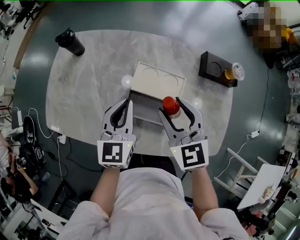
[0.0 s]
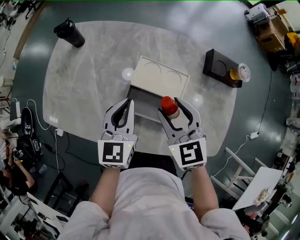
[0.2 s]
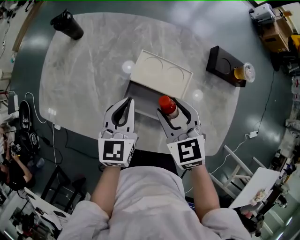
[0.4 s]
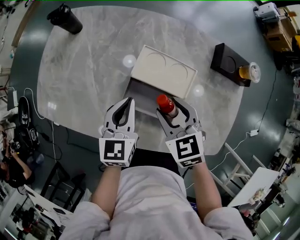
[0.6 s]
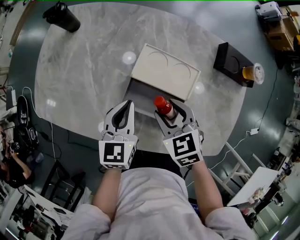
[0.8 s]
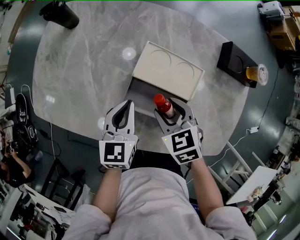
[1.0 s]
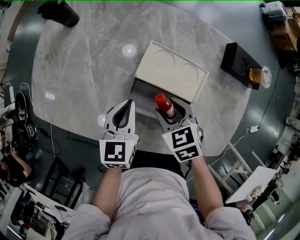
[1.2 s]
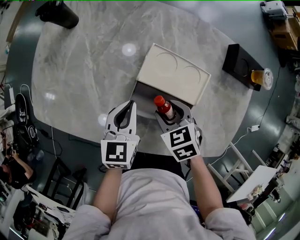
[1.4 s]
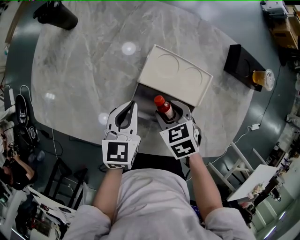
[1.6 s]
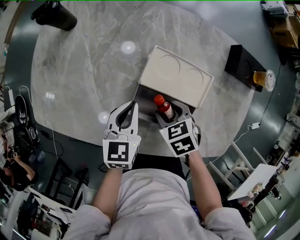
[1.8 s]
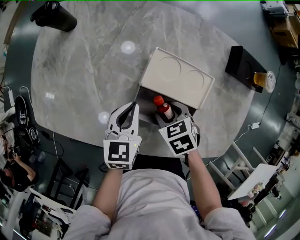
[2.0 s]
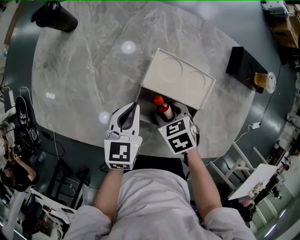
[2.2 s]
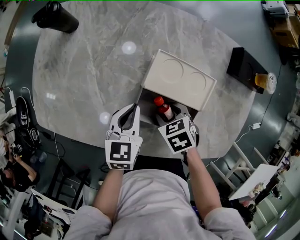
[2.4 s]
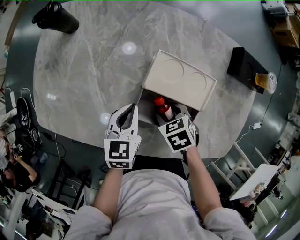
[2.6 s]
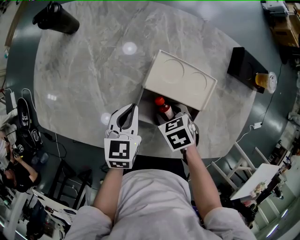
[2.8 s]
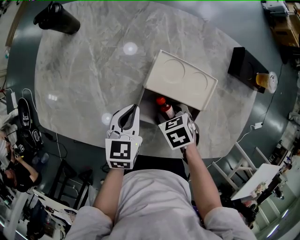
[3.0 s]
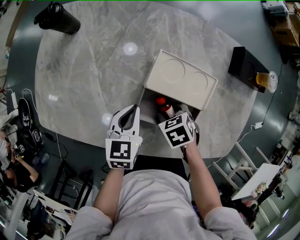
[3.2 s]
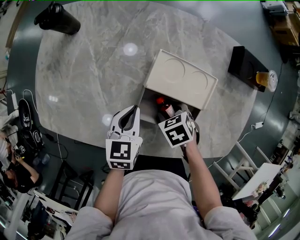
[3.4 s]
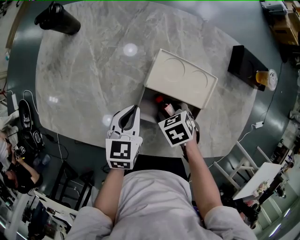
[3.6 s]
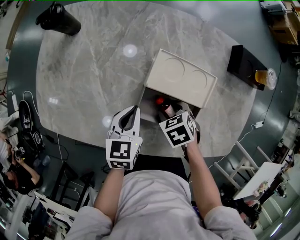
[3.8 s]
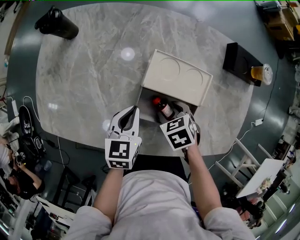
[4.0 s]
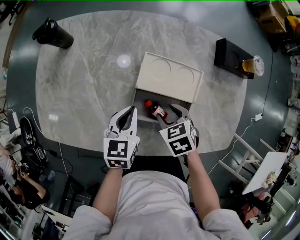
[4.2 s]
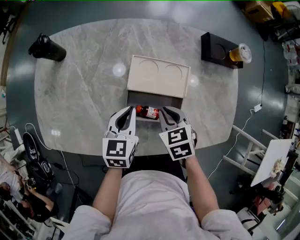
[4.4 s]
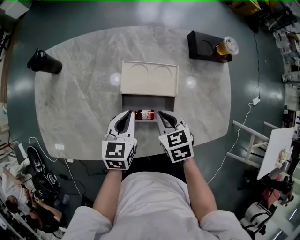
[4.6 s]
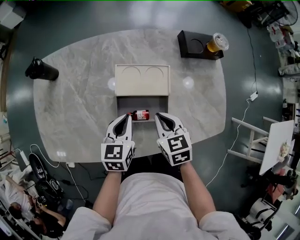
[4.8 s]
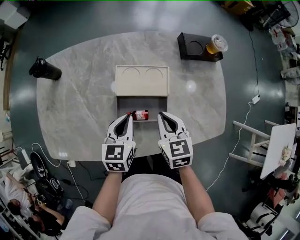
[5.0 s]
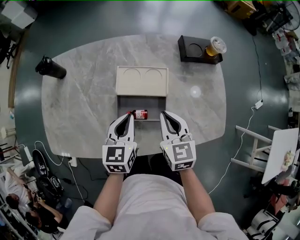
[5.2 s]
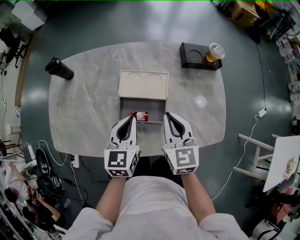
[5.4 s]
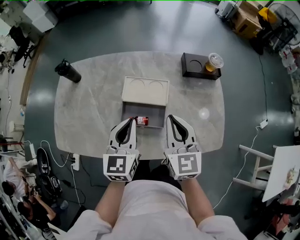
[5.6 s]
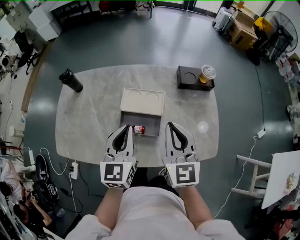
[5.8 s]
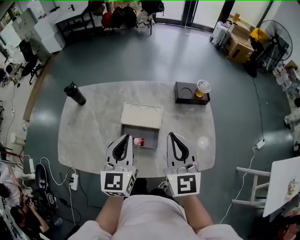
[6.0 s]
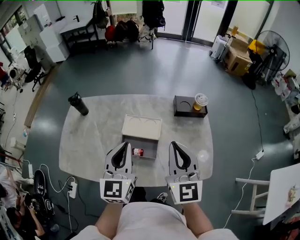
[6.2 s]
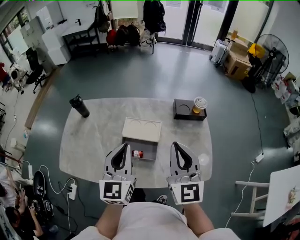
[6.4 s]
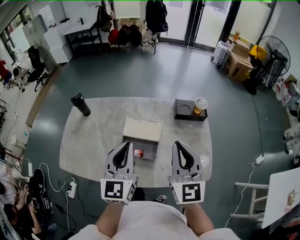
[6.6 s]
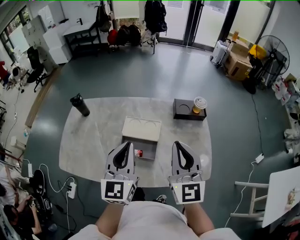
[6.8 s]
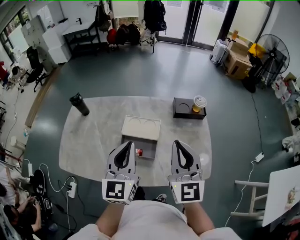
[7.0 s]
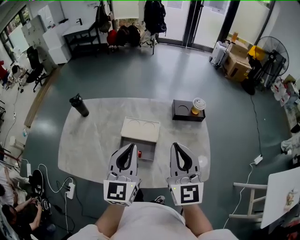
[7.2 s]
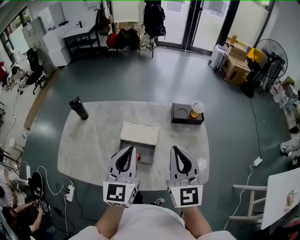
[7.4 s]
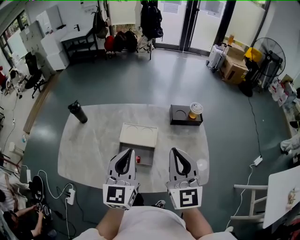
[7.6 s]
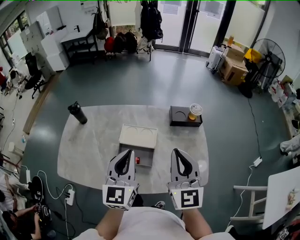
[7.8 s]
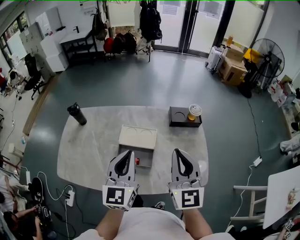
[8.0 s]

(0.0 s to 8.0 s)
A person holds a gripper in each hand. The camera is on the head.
0.0 s - 1.6 s: The two grippers go approximately 20 cm downward. The left gripper turns by approximately 20 degrees. The right gripper angles its fingers downward, by some 40 degrees.
1.6 s - 3.2 s: The right gripper changes place by some 5 cm.
3.2 s - 4.8 s: The right gripper is displaced upward by about 15 cm, swivels approximately 40 degrees, and closes. Meanwhile the left gripper changes place by about 10 cm.
4.8 s - 6.4 s: Both grippers move upward, roughly 30 cm. The left gripper tilts its fingers about 30 degrees upward; the right gripper points its fingers approximately 50 degrees further upward.
6.4 s - 8.0 s: The grippers move only a little.

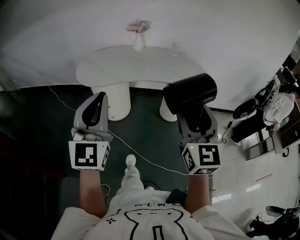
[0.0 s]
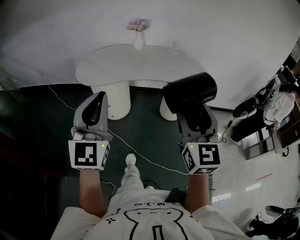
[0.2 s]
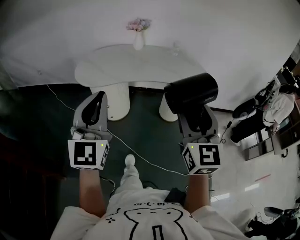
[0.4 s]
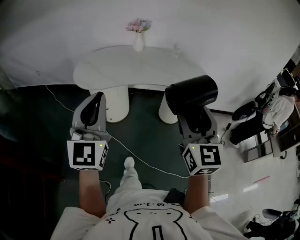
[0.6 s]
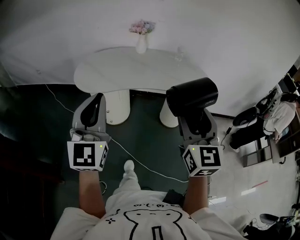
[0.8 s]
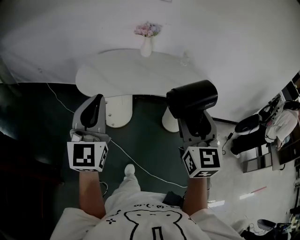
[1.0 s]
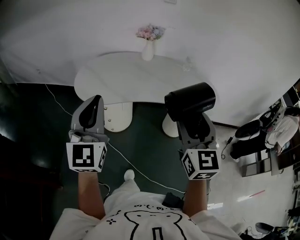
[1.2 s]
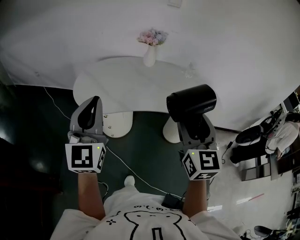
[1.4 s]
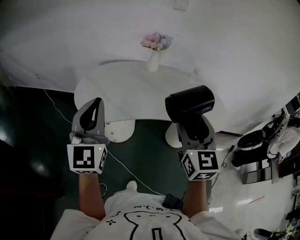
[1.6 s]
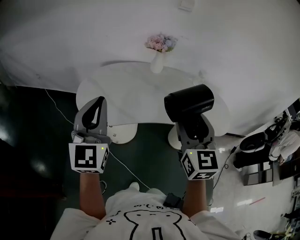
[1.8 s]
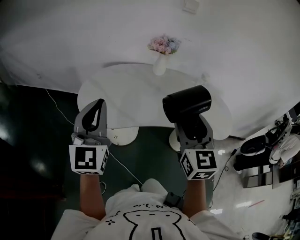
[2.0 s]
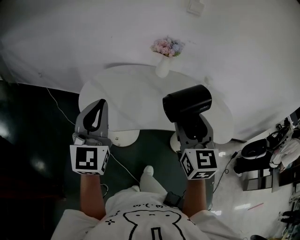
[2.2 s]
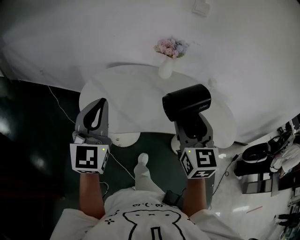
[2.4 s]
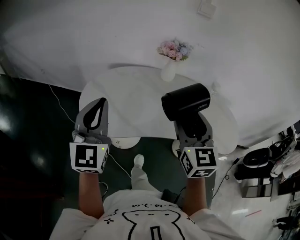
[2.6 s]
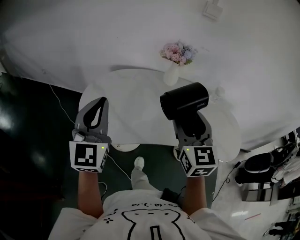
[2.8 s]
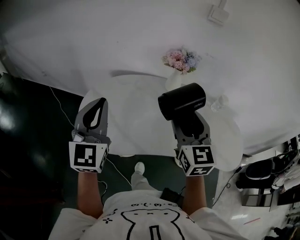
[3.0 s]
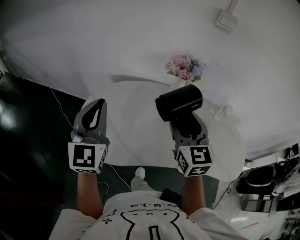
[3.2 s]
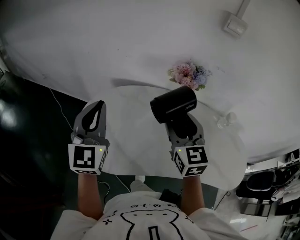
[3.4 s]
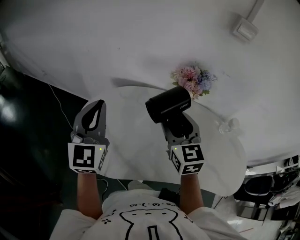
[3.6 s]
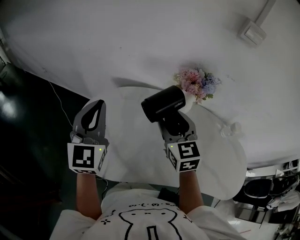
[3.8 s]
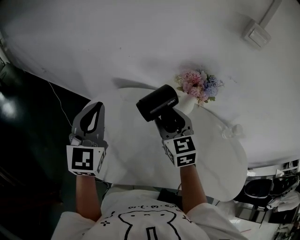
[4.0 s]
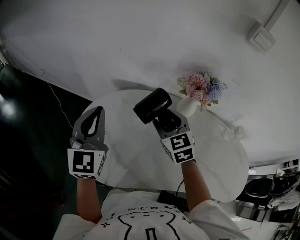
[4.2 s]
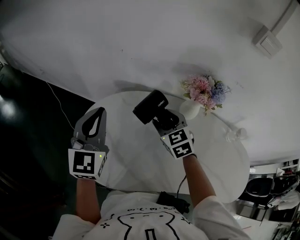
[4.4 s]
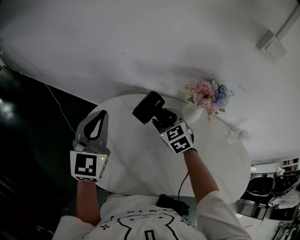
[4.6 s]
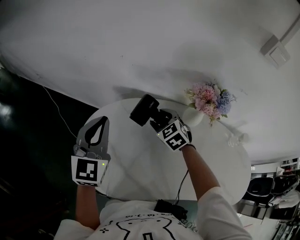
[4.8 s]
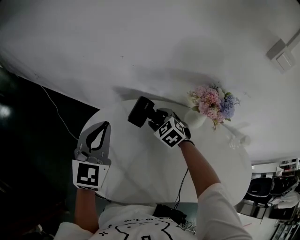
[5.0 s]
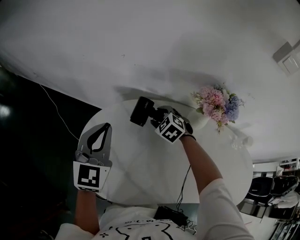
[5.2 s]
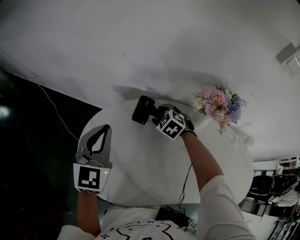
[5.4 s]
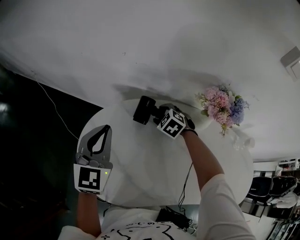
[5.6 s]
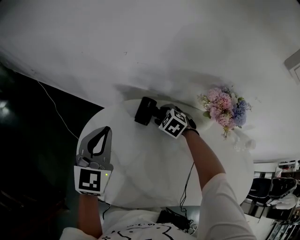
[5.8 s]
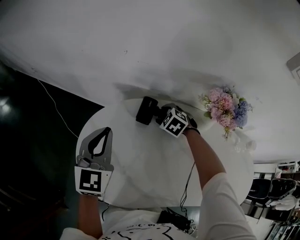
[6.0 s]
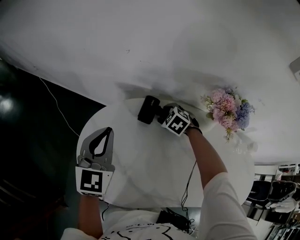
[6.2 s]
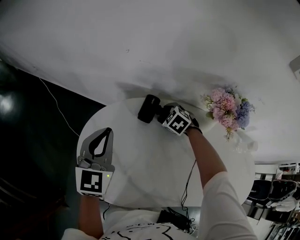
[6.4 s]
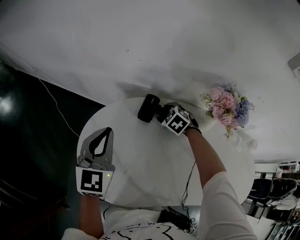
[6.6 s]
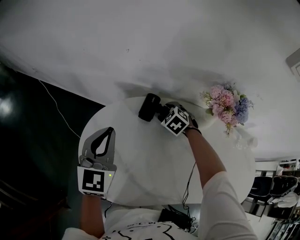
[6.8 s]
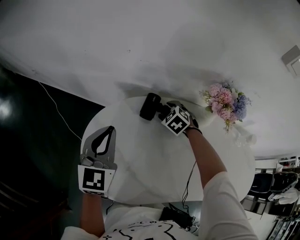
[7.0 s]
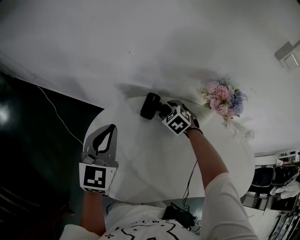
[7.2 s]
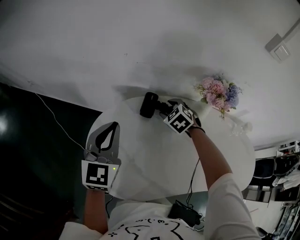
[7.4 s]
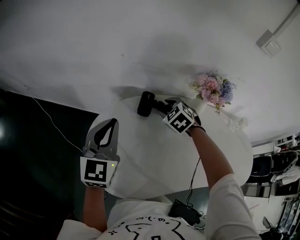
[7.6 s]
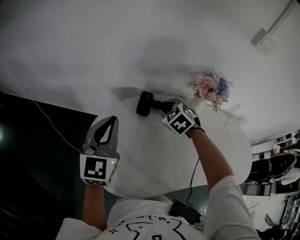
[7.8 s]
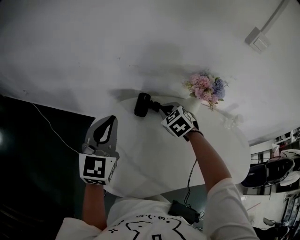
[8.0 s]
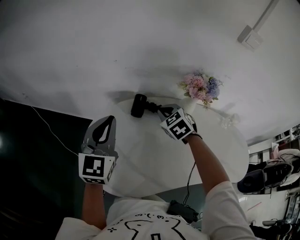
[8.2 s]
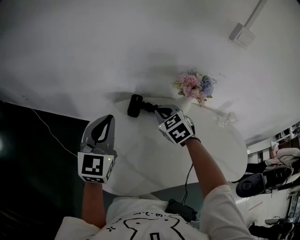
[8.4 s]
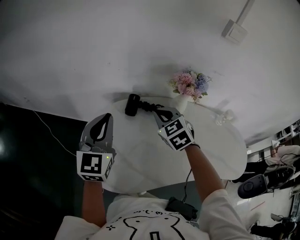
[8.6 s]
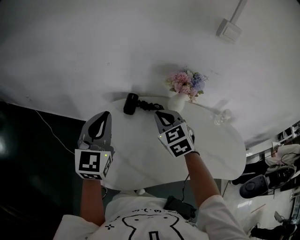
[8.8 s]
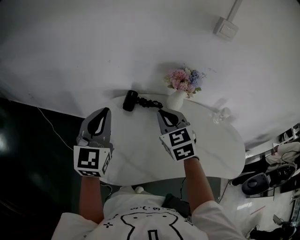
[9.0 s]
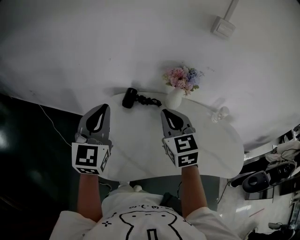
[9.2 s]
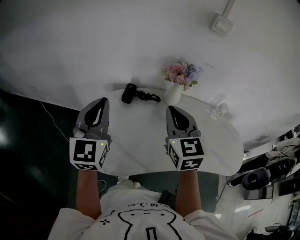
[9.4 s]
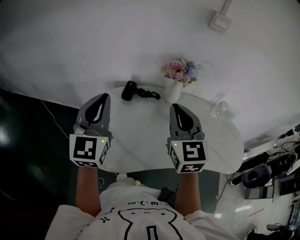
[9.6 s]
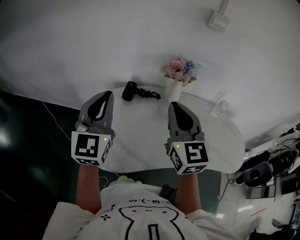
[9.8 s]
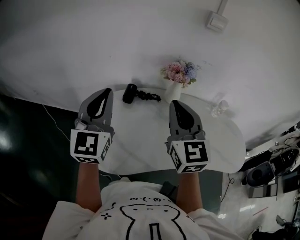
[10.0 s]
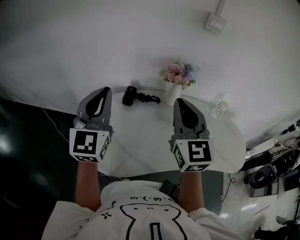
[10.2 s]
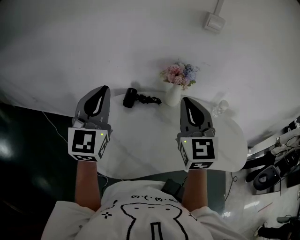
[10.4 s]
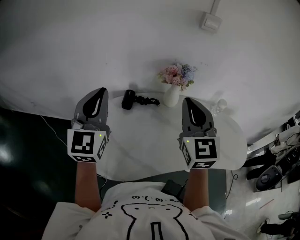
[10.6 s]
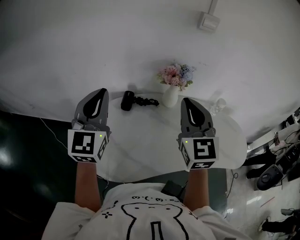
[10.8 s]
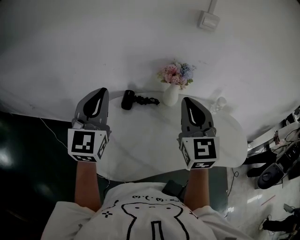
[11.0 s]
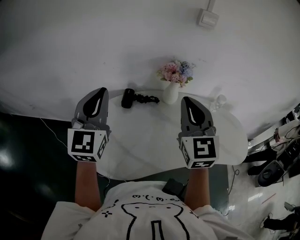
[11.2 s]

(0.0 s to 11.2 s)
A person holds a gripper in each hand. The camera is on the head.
0.0 s - 1.6 s: The left gripper heads forward and to the left, covering approximately 35 cm; the right gripper travels forward by approximately 30 cm.
1.6 s - 3.2 s: Both grippers travel together forward, some 30 cm.
3.2 s - 4.8 s: The right gripper is displaced forward and downward by about 35 cm, and tilts its fingers approximately 40 degrees downward. Meanwhile the left gripper heads forward and downward, covering approximately 20 cm.
4.8 s - 6.4 s: The right gripper goes some 15 cm downward and forward, and changes its angle by about 20 degrees, while the left gripper is displaced downward by approximately 5 cm.
6.4 s - 8.0 s: The left gripper goes some 5 cm upward. The right gripper travels upward and backward by about 15 cm, changes its angle by approximately 20 degrees, and closes up.
8.0 s - 9.6 s: The left gripper moves backward, upward and to the right, approximately 20 cm. The right gripper moves backward, upward and to the right, about 35 cm, and angles its fingers upward, by roughly 50 degrees.
9.6 s - 11.2 s: The left gripper changes place by approximately 5 cm.

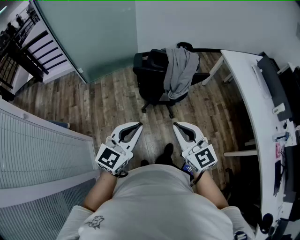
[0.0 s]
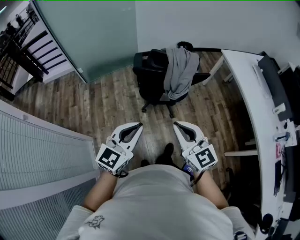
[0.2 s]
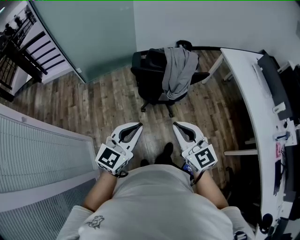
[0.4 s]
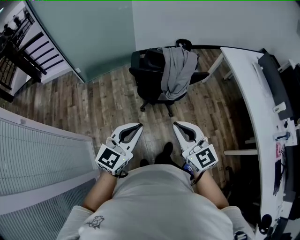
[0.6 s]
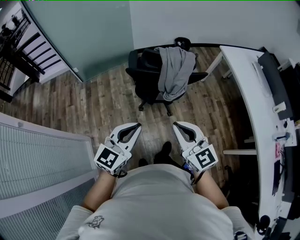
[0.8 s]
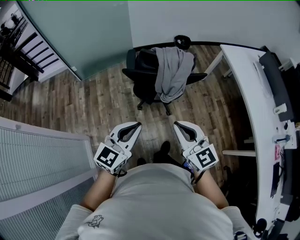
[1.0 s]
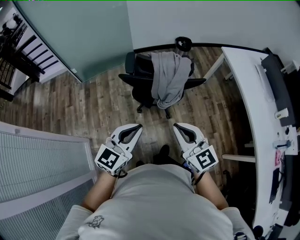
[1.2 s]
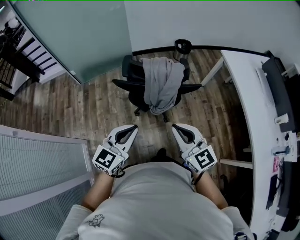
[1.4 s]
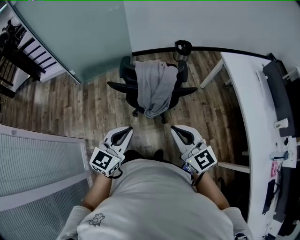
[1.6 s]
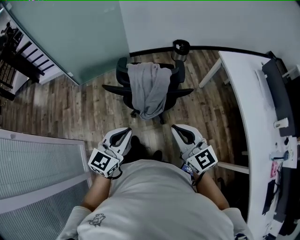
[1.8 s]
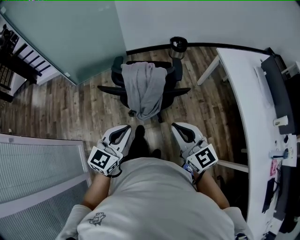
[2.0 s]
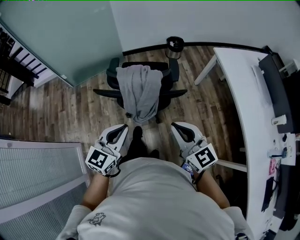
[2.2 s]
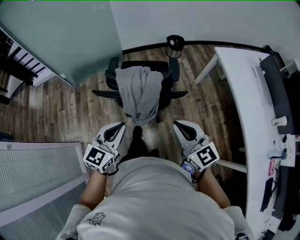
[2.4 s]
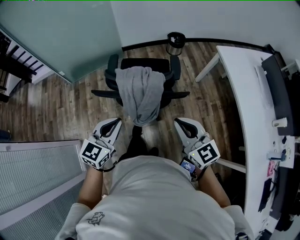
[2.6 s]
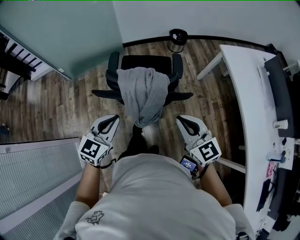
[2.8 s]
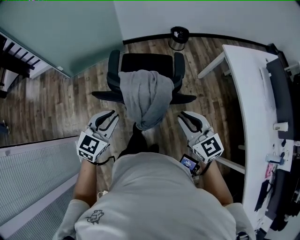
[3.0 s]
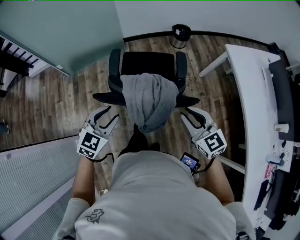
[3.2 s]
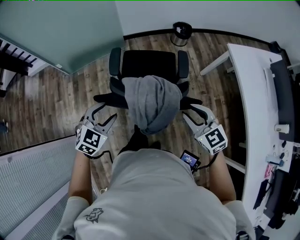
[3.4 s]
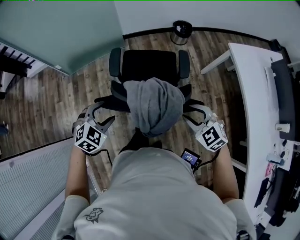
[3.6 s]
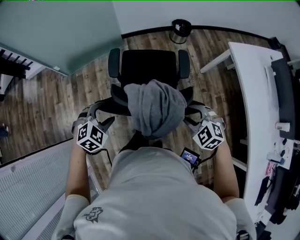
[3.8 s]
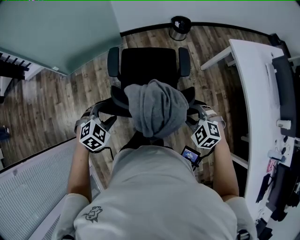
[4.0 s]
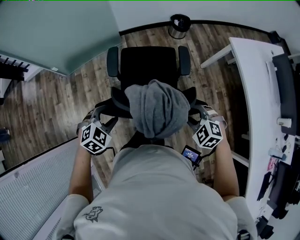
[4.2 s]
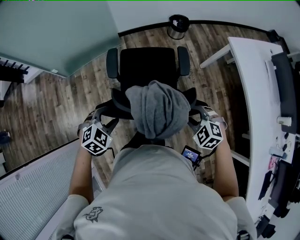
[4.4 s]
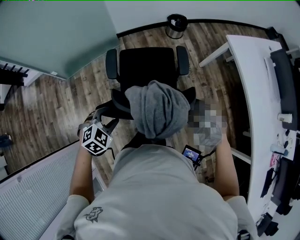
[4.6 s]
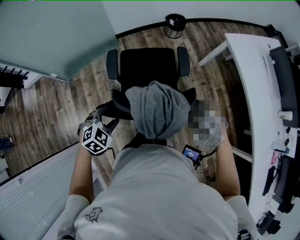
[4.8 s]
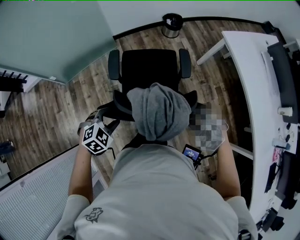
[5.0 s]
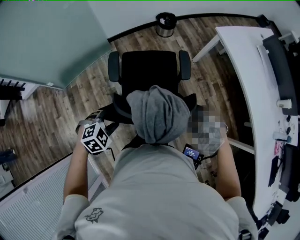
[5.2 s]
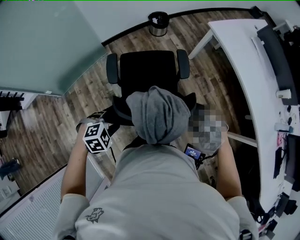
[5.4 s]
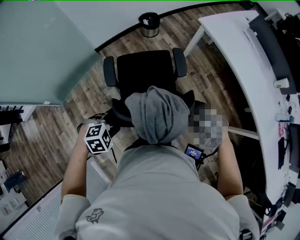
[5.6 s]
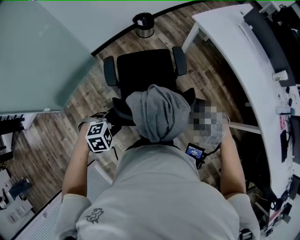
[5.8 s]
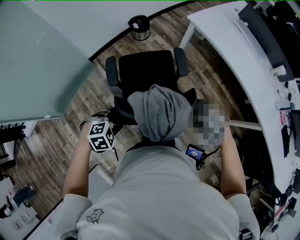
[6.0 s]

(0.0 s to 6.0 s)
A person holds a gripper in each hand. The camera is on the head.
0.0 s - 1.6 s: The two grippers go roughly 25 cm forward and to the right.
1.6 s - 3.0 s: Both grippers travel together forward, approximately 20 cm.
3.0 s - 4.4 s: The left gripper heads downward, forward and to the left, covering approximately 15 cm, rotates some 40 degrees, and opens up. The right gripper moves downward and forward, some 15 cm, angles its fingers downward, by approximately 40 degrees, and opens up.
4.4 s - 6.0 s: The left gripper changes place by approximately 10 cm, and swivels some 50 degrees. The right gripper changes place by about 10 cm.
